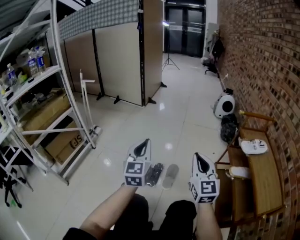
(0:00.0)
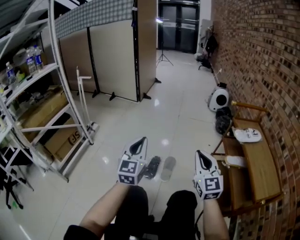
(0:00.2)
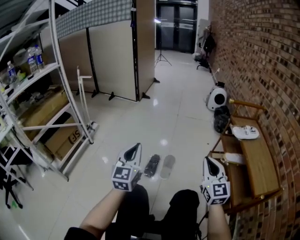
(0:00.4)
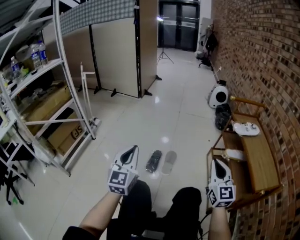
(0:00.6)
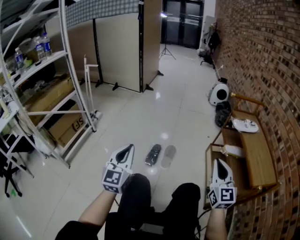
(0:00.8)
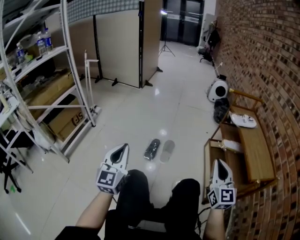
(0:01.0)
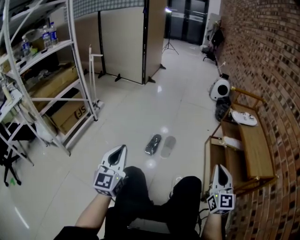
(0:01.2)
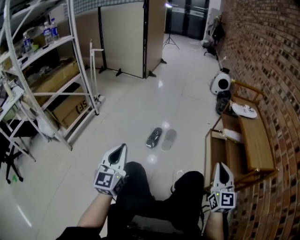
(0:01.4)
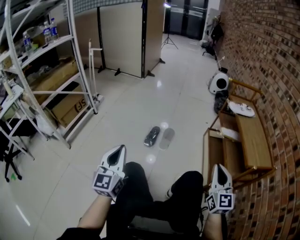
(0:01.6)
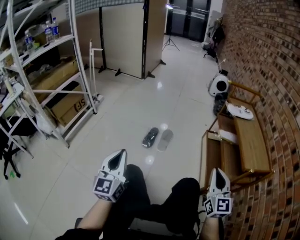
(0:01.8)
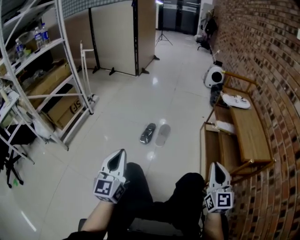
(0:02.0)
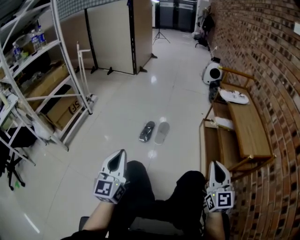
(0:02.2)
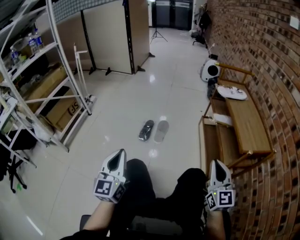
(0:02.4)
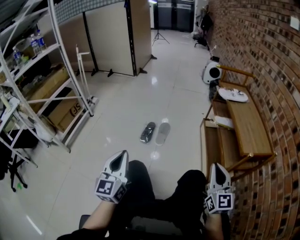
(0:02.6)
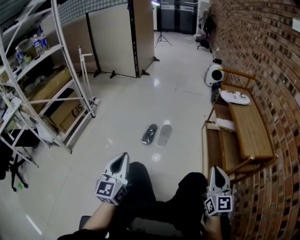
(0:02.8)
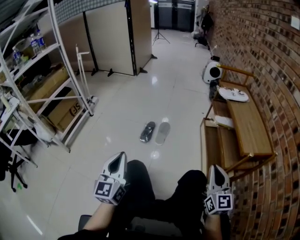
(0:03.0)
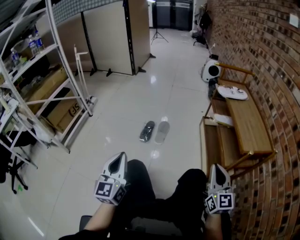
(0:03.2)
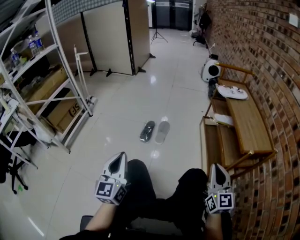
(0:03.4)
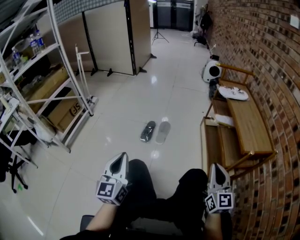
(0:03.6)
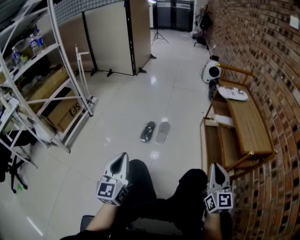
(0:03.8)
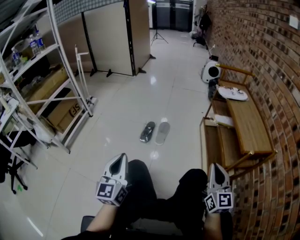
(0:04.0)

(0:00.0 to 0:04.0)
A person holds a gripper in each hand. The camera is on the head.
0:00.0 - 0:01.4: The left gripper goes roughly 30 cm backward. Meanwhile the right gripper goes approximately 30 cm backward and to the right.
0:01.4 - 0:02.6: The left gripper heads to the right, covering some 10 cm. The right gripper travels to the right and backward by roughly 10 cm.
0:02.6 - 0:04.0: There are only small adjustments of the grippers.

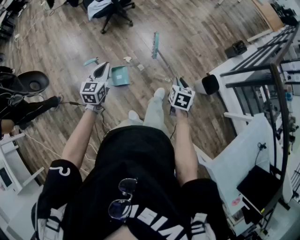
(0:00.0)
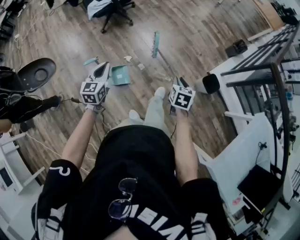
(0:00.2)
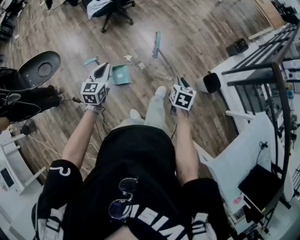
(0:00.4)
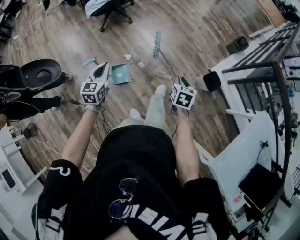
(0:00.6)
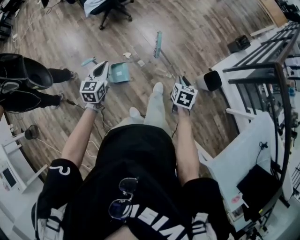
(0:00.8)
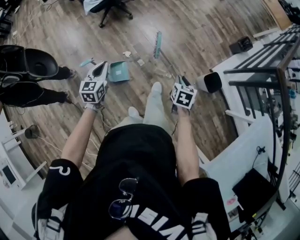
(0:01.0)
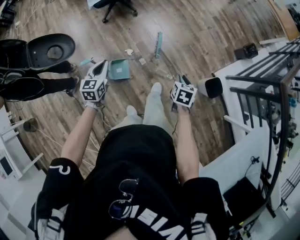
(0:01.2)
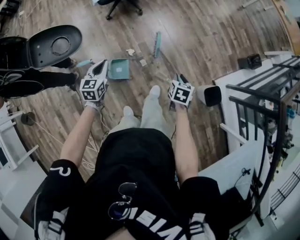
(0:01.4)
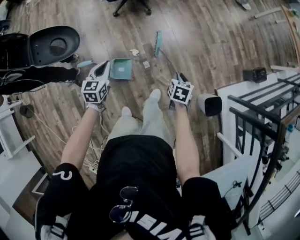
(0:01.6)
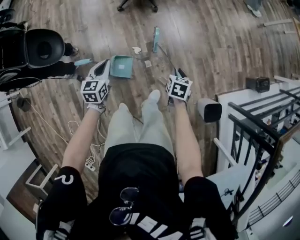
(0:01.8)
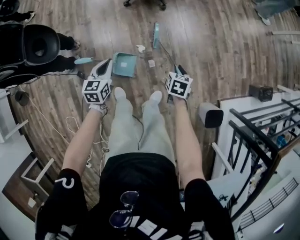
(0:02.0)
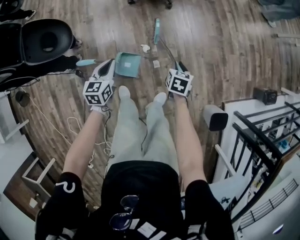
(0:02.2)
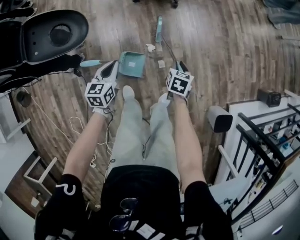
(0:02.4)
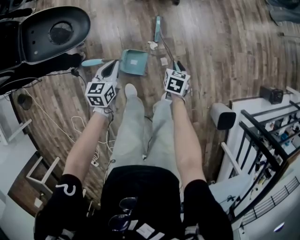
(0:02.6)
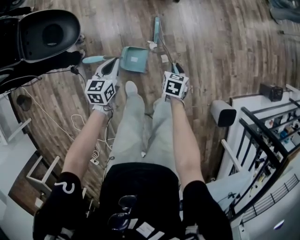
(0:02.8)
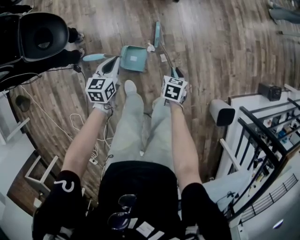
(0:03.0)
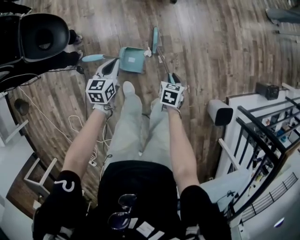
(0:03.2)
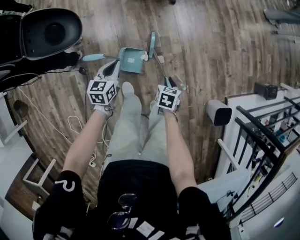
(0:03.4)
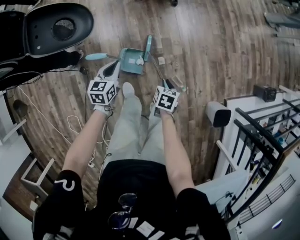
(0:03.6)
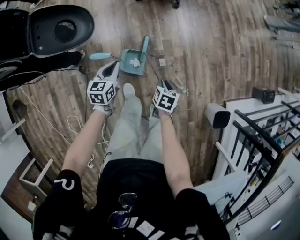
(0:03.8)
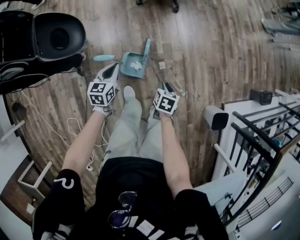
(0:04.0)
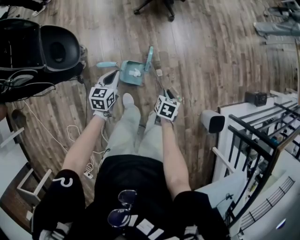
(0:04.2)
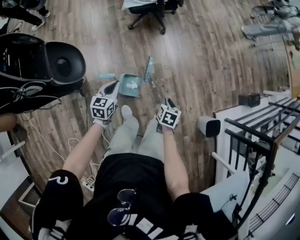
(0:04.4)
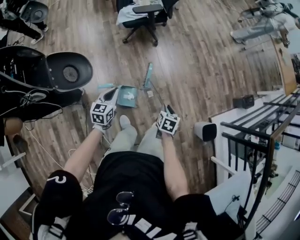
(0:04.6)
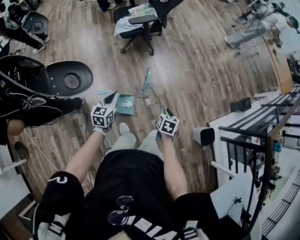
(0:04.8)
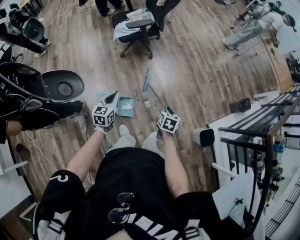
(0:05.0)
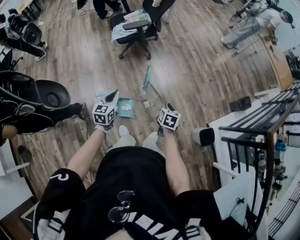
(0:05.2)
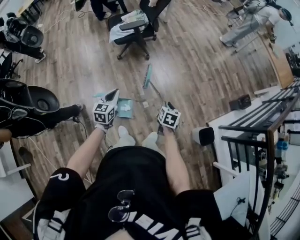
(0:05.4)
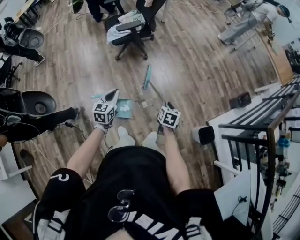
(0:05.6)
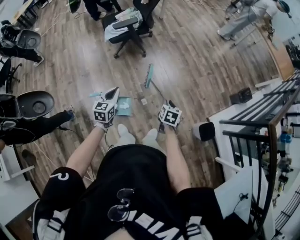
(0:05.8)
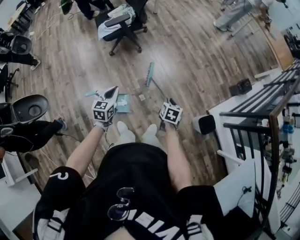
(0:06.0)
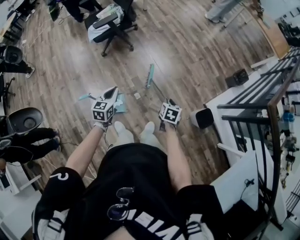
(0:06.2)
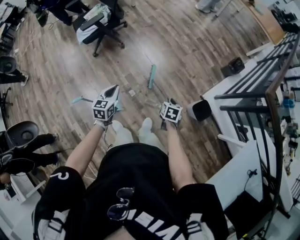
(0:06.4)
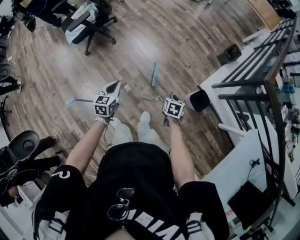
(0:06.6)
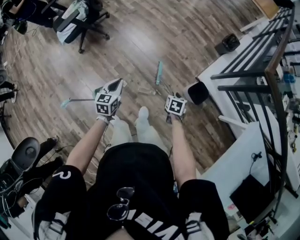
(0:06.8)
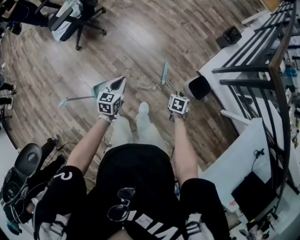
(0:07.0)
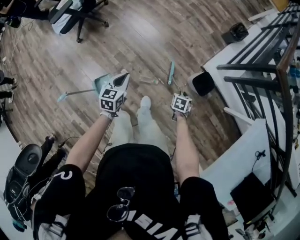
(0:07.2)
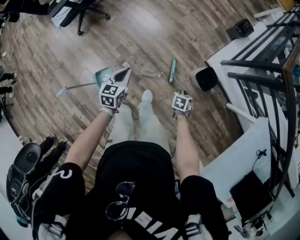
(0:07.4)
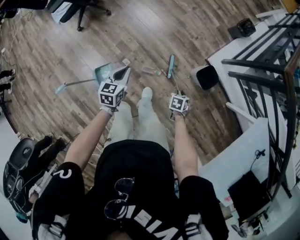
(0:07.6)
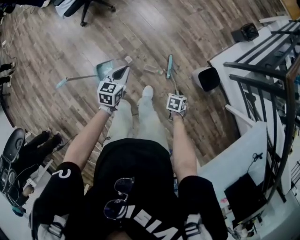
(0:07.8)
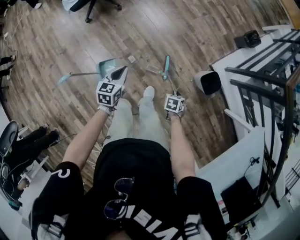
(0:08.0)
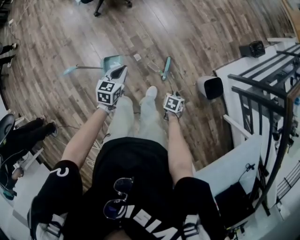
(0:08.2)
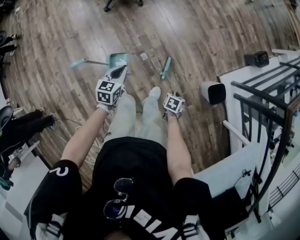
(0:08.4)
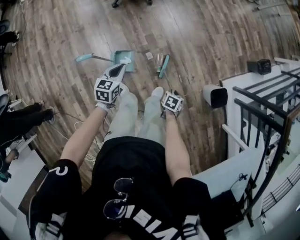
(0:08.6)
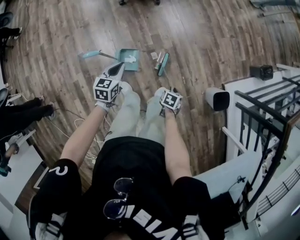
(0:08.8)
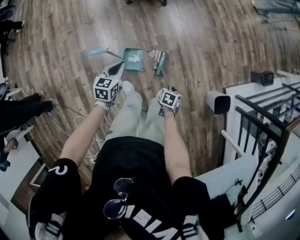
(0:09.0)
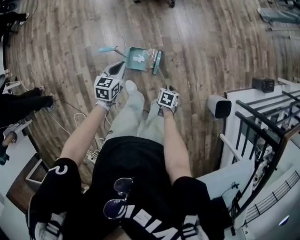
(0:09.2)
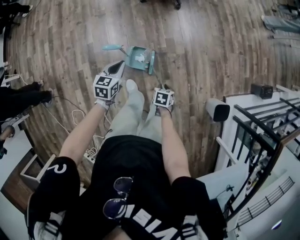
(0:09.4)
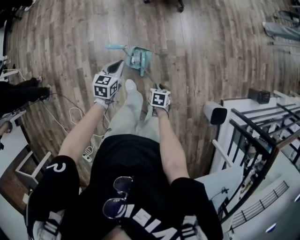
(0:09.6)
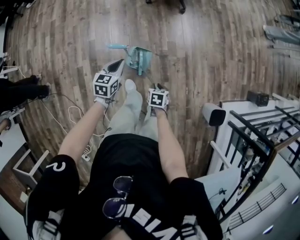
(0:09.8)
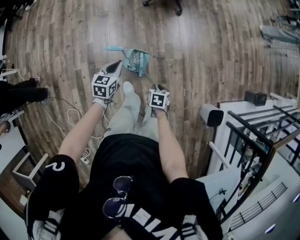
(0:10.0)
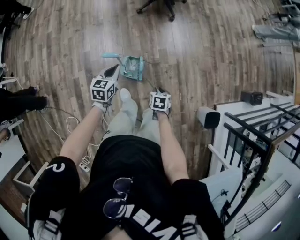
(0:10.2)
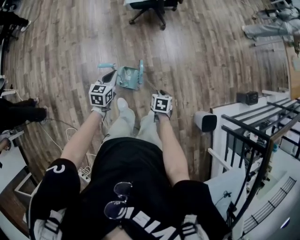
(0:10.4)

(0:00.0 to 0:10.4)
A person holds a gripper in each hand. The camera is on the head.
0:00.0 - 0:01.4: Both grippers move forward and downward, roughly 20 cm.
0:01.4 - 0:03.0: The right gripper moves downward, to the left and forward, approximately 35 cm. The left gripper goes roughly 20 cm downward and to the left.
0:03.0 - 0:04.4: The grippers both shift upward and backward by some 15 cm.
0:04.4 - 0:06.0: The grippers both shift to the right and upward by about 25 cm.
0:06.0 - 0:07.4: The right gripper changes place by about 40 cm, and changes its angle by about 30 degrees. The left gripper changes place by approximately 30 cm, and swivels roughly 20 degrees.
0:07.4 - 0:09.0: The left gripper changes place by some 40 cm, and changes its angle by approximately 30 degrees. The right gripper ends up roughly 40 cm from where it was, and turns by some 20 degrees.
0:09.0 - 0:10.4: The right gripper changes place by some 15 cm; the left gripper ends up roughly 10 cm from where it was.

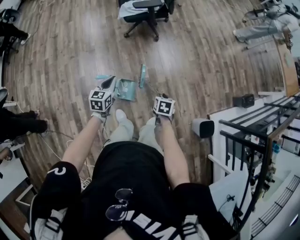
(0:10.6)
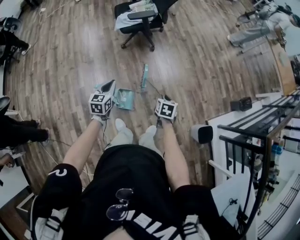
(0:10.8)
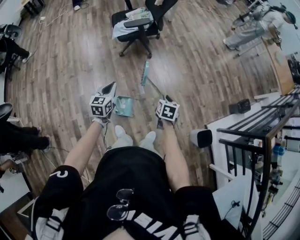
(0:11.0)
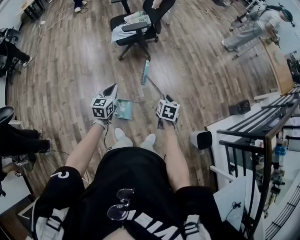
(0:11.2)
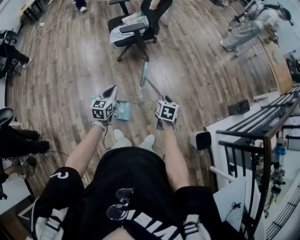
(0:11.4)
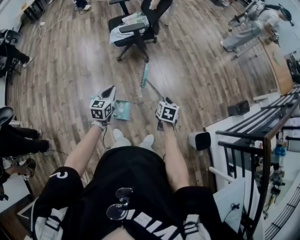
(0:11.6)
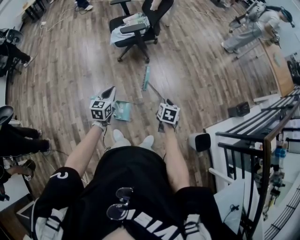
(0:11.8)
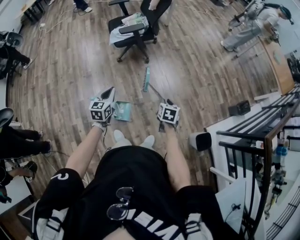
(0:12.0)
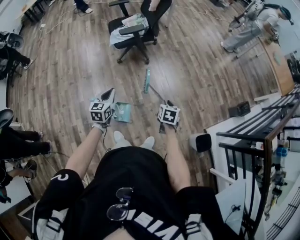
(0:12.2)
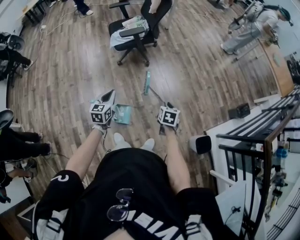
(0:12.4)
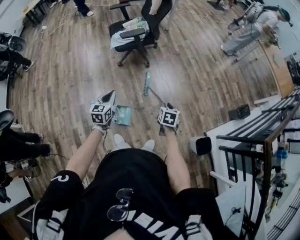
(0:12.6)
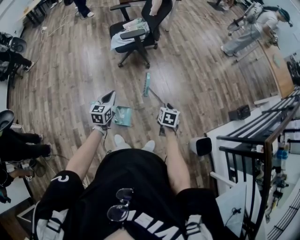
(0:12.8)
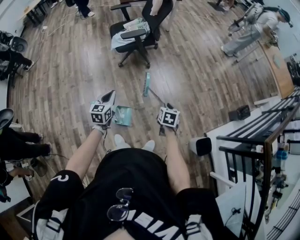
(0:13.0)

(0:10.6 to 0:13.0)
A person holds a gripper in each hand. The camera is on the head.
0:10.6 - 0:11.8: The right gripper moves upward, to the right and forward, some 15 cm. The left gripper shifts approximately 10 cm to the right and upward.
0:11.8 - 0:13.0: Neither gripper changes place.

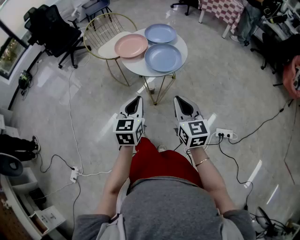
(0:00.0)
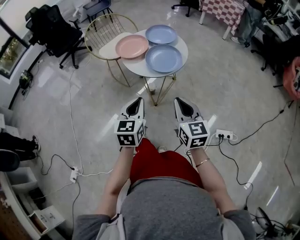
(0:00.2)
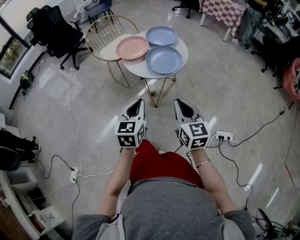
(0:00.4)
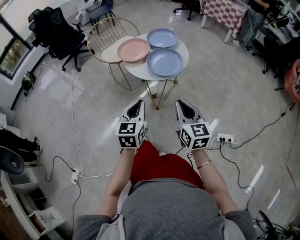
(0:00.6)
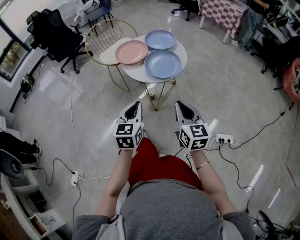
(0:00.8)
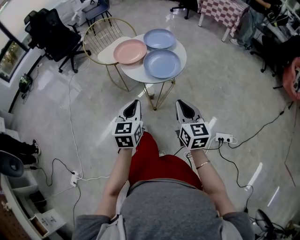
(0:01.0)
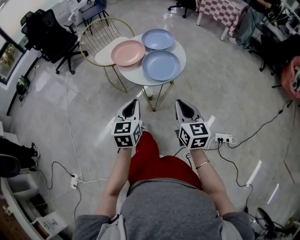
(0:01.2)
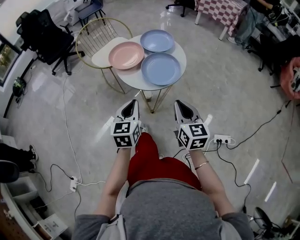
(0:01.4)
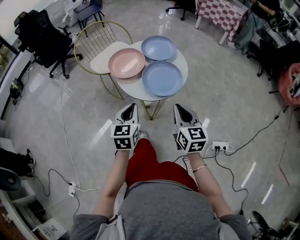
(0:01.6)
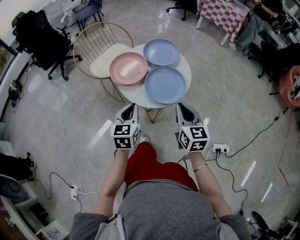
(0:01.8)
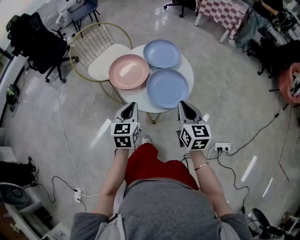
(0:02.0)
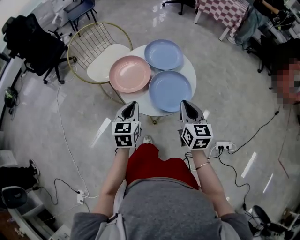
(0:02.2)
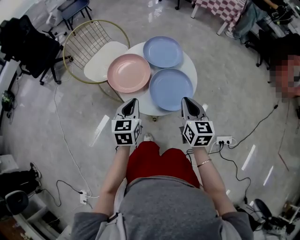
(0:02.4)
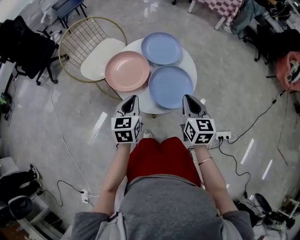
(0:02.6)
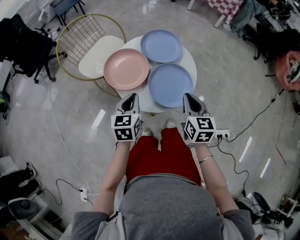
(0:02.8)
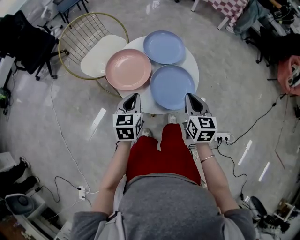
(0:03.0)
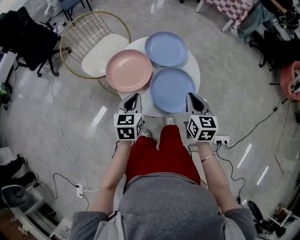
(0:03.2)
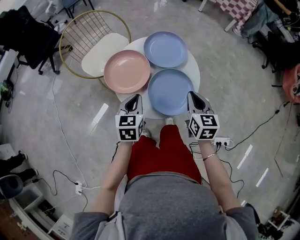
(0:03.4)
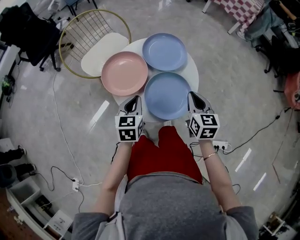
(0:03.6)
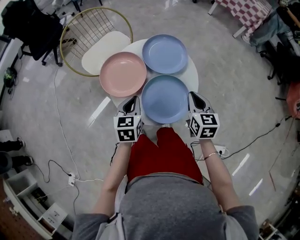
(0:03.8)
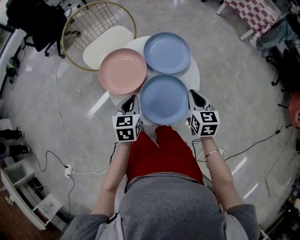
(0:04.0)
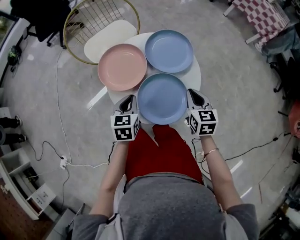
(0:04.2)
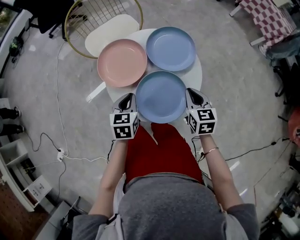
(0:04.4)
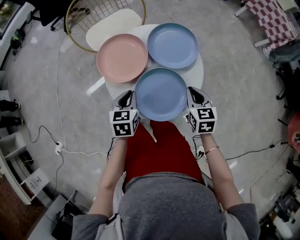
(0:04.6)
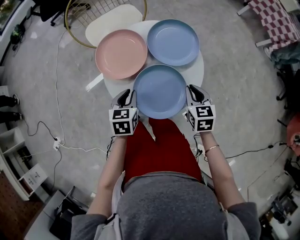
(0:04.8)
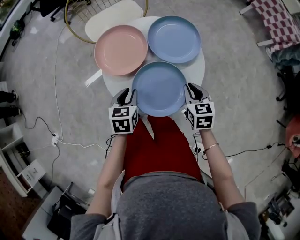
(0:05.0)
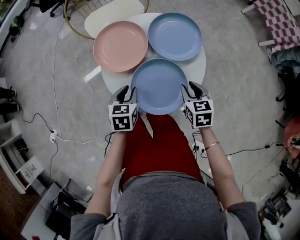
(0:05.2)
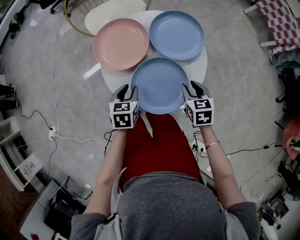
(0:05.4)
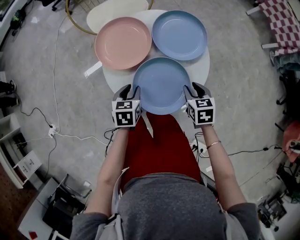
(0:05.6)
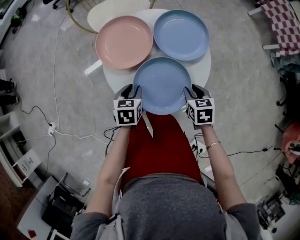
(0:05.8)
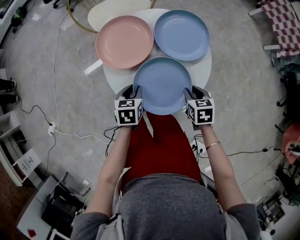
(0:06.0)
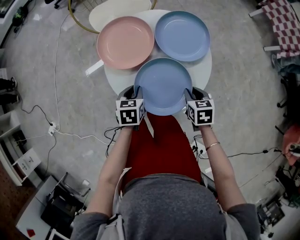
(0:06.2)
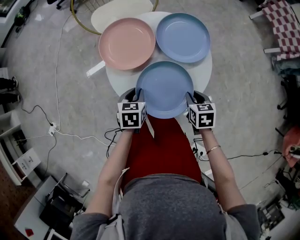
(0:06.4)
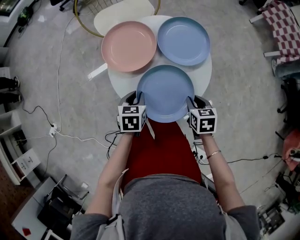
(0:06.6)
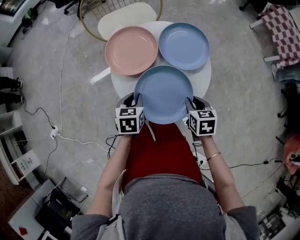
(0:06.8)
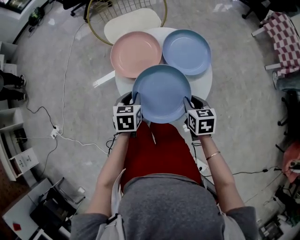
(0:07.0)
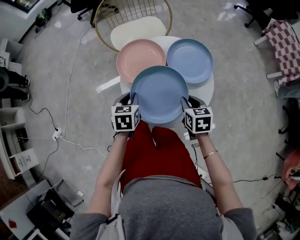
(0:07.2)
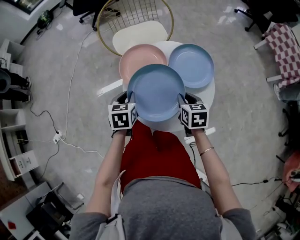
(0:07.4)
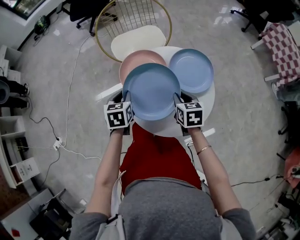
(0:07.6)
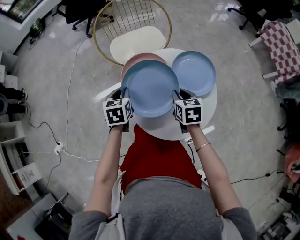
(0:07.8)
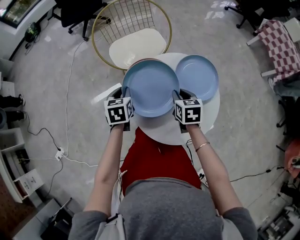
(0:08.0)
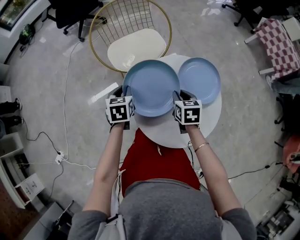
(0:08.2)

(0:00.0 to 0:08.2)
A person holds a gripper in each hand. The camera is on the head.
0:00.0 - 0:01.6: The two grippers go approximately 15 cm forward.
0:01.6 - 0:03.2: The grippers both shift forward by approximately 20 cm.
0:03.2 - 0:05.0: The left gripper heads downward, covering some 10 cm, changes its angle by about 30 degrees, and opens up, while the right gripper moves approximately 15 cm, and changes its angle by about 40 degrees.
0:05.0 - 0:06.6: The right gripper changes place by some 5 cm.
0:06.6 - 0:08.2: Both grippers travel together forward and to the left, about 25 cm.
